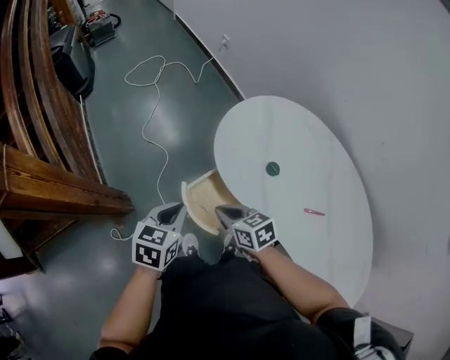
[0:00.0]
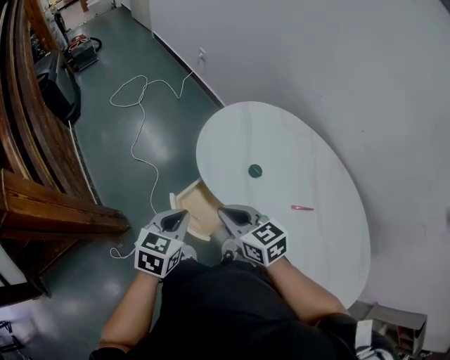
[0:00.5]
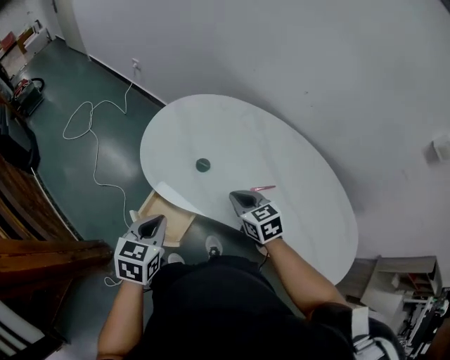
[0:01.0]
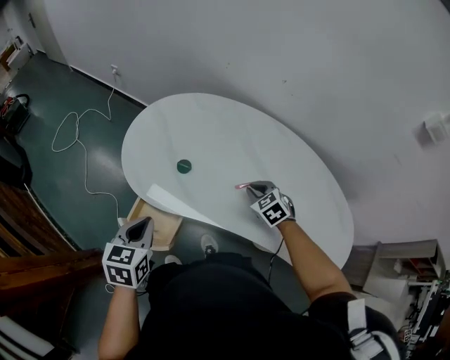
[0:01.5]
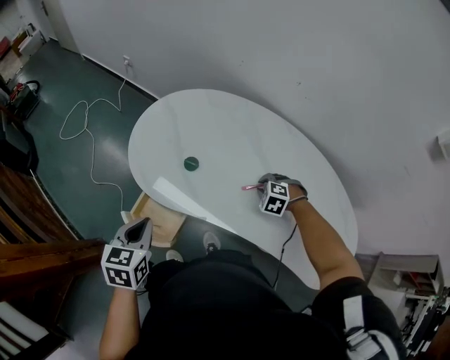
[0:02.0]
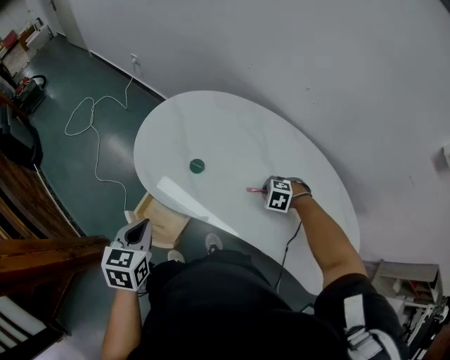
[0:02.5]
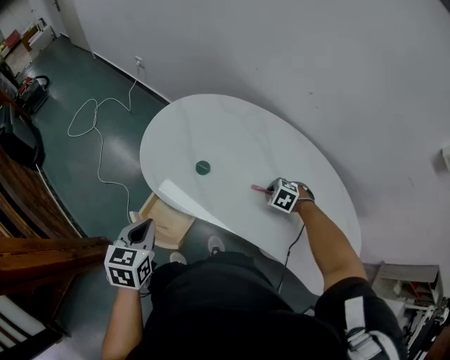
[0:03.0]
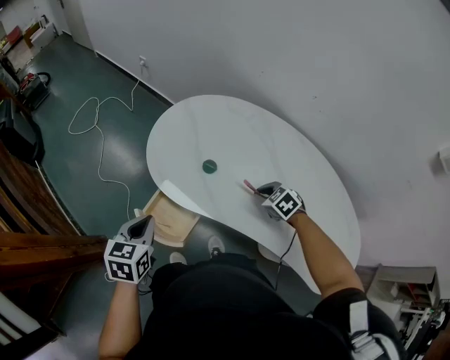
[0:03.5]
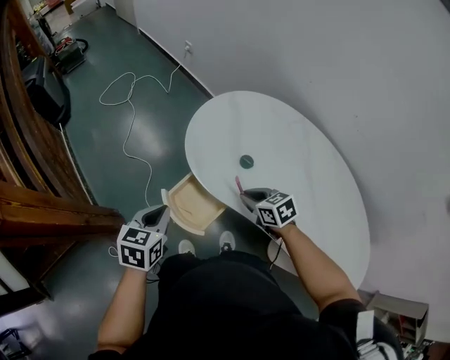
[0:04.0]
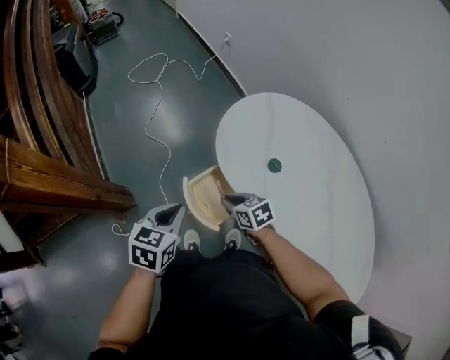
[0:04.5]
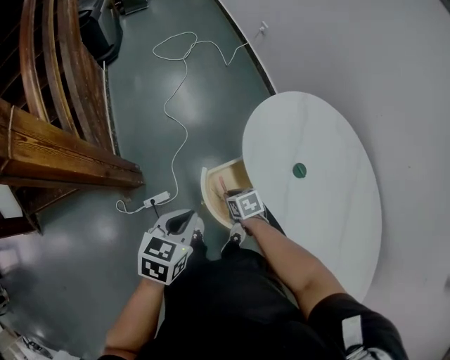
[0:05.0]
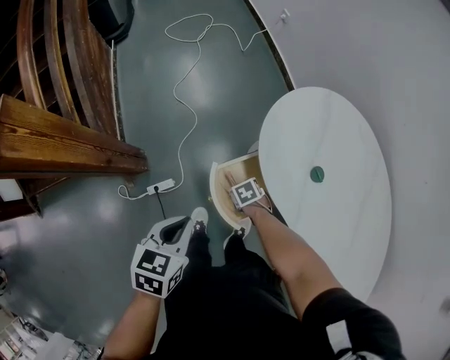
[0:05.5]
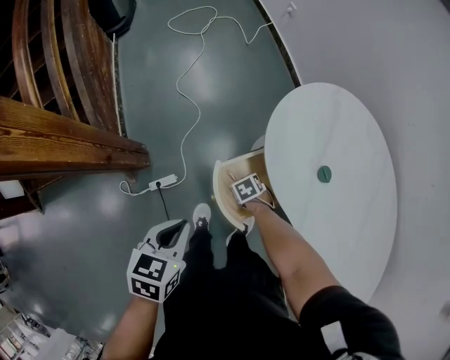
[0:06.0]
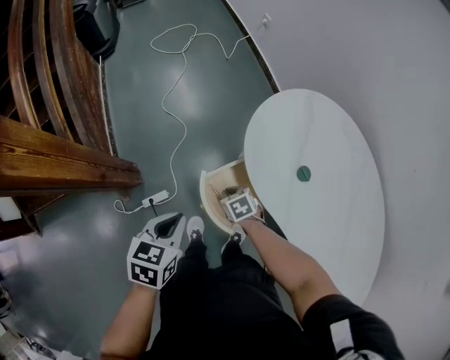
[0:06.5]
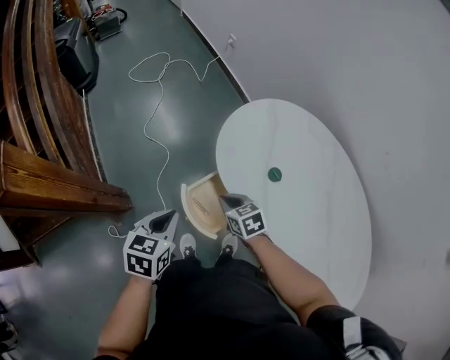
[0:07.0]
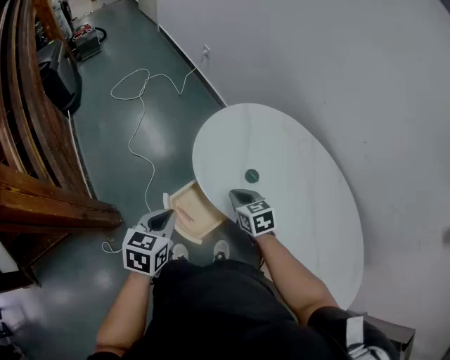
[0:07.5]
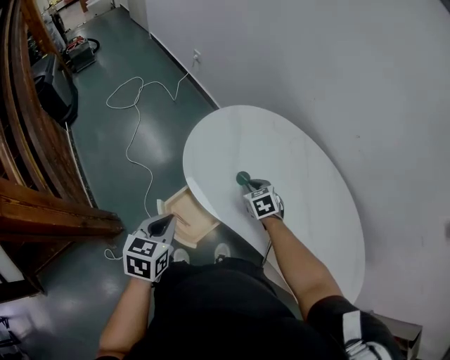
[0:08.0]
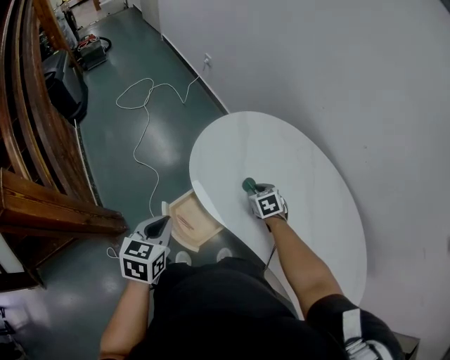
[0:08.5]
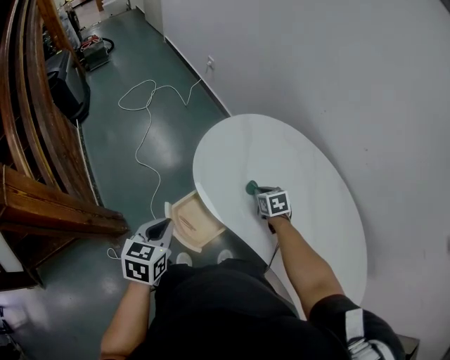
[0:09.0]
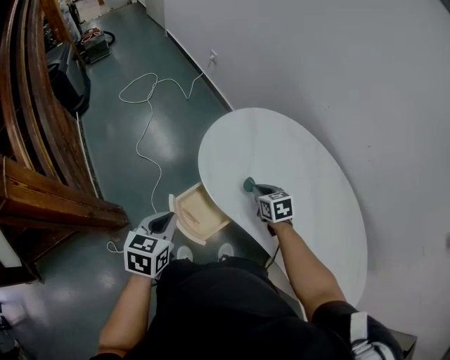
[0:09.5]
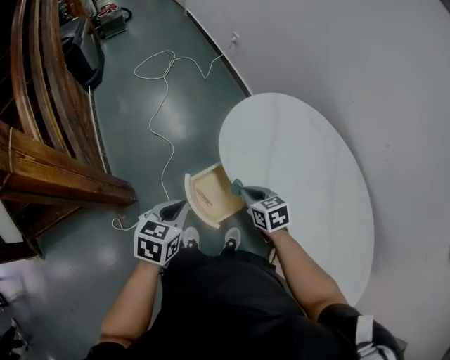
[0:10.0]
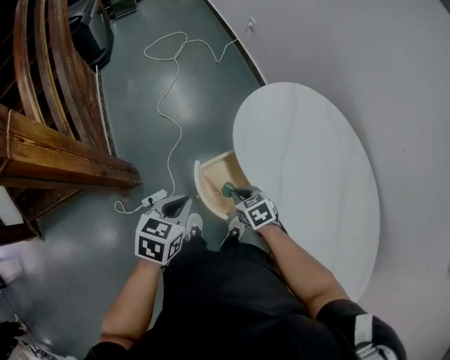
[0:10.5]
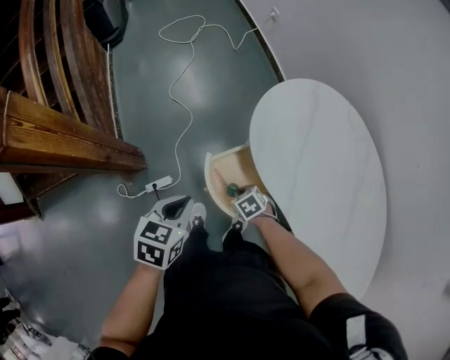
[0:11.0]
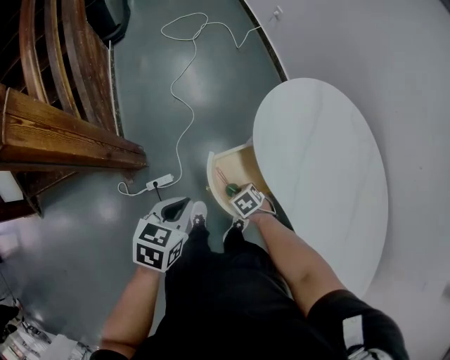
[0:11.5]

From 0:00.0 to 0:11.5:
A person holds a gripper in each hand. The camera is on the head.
From 0:00.0 to 0:02.0: The right gripper ends up approximately 40 cm from where it was, and points its fingers approximately 30 degrees further downward; the left gripper moves about 15 cm.
From 0:02.0 to 0:04.0: The right gripper changes place by roughly 25 cm, and turns by approximately 50 degrees. Meanwhile the left gripper shifts by roughly 10 cm.
From 0:04.0 to 0:06.0: The right gripper travels downward by roughly 30 cm, and angles its fingers downward, by approximately 40 degrees. Meanwhile the left gripper ends up roughly 10 cm from where it was, and swivels about 20 degrees.
From 0:06.0 to 0:07.5: The right gripper travels upward by about 30 cm, and angles its fingers upward, by about 40 degrees; the left gripper ends up some 15 cm from where it was.
From 0:07.5 to 0:09.5: The right gripper travels to the right by about 5 cm.
From 0:09.5 to 0:11.5: The left gripper moves roughly 10 cm, while the right gripper shifts by some 30 cm, and turns by approximately 40 degrees.

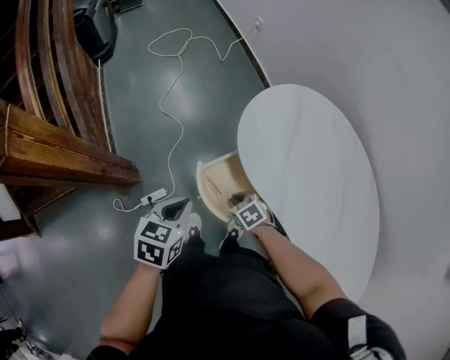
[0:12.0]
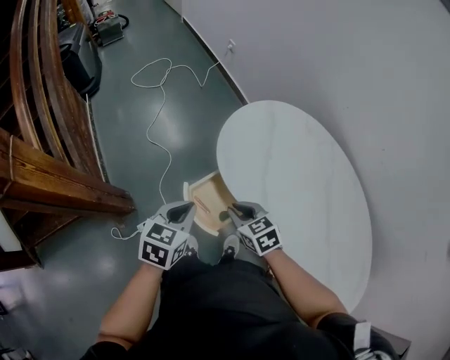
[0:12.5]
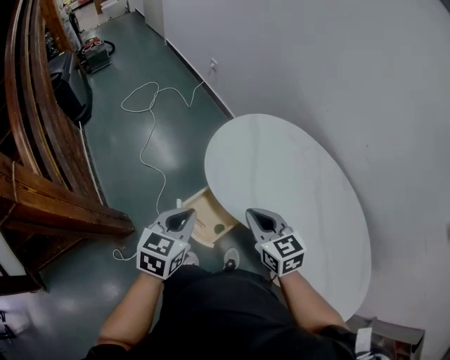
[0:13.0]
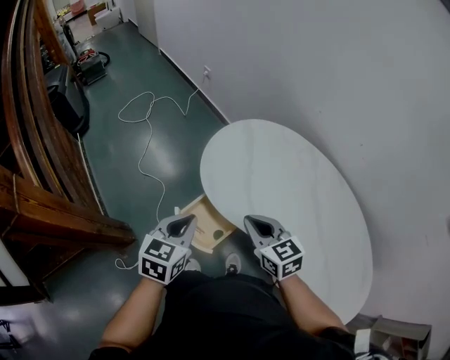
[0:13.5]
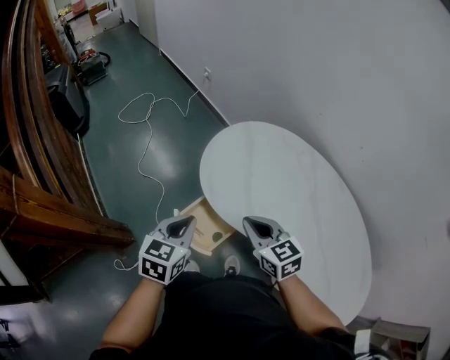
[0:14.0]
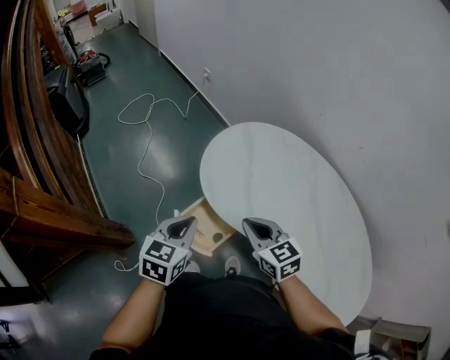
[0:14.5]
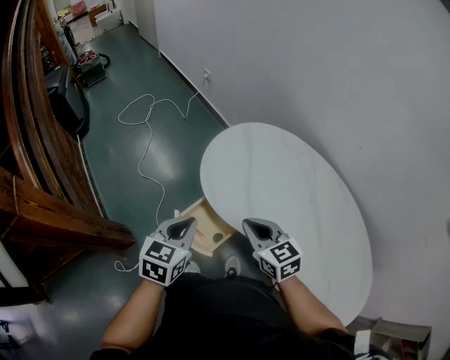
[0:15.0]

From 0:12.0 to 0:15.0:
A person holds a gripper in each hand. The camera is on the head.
From 0:12.0 to 0:13.5: The right gripper moves upward, roughly 30 cm, and tilts its fingers roughly 40 degrees upward, while the left gripper is displaced upward and to the right by roughly 15 cm, and rotates some 20 degrees.
From 0:13.5 to 0:15.0: Both grippers stay about where they are.

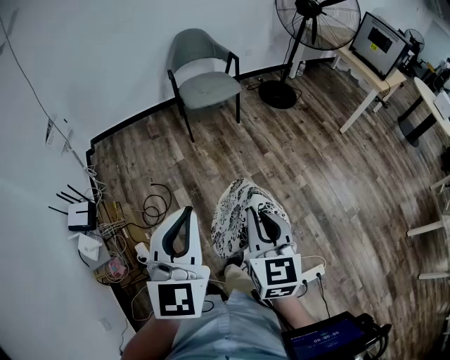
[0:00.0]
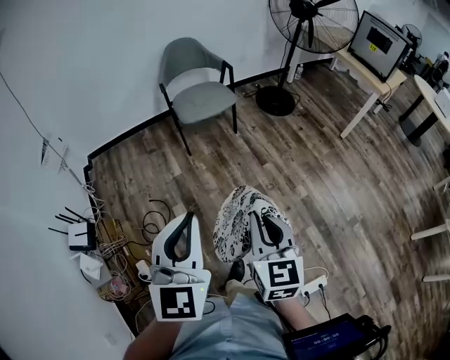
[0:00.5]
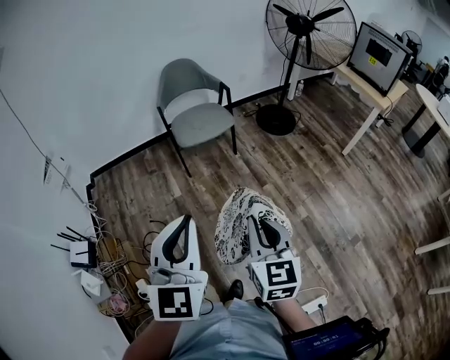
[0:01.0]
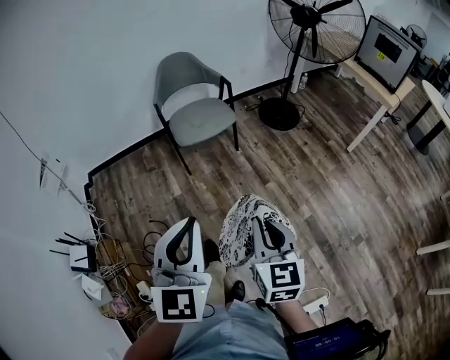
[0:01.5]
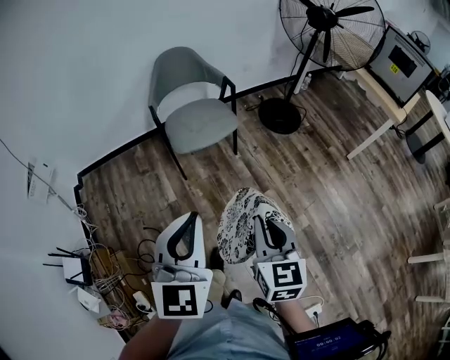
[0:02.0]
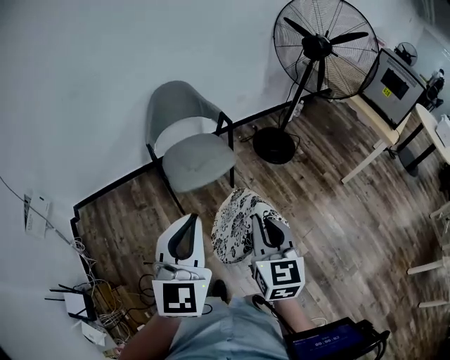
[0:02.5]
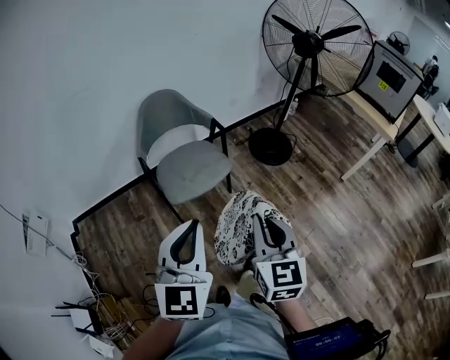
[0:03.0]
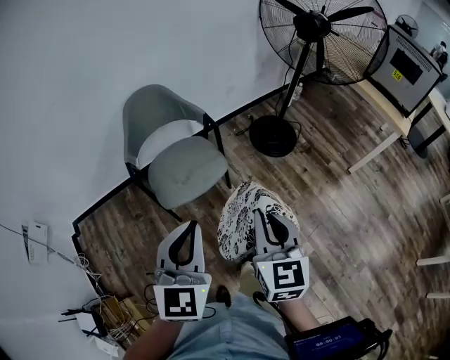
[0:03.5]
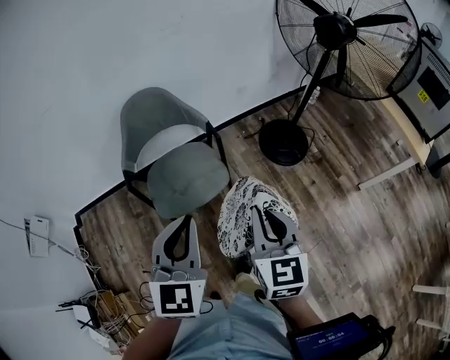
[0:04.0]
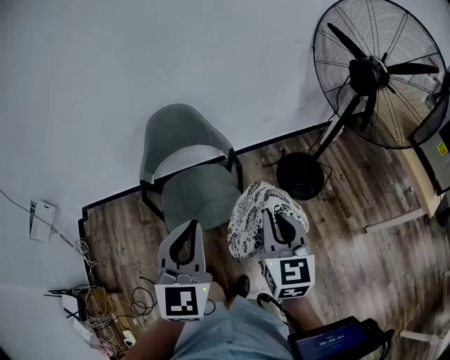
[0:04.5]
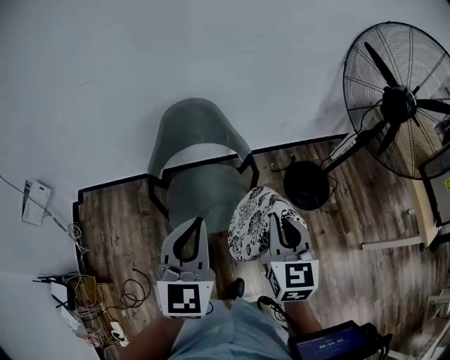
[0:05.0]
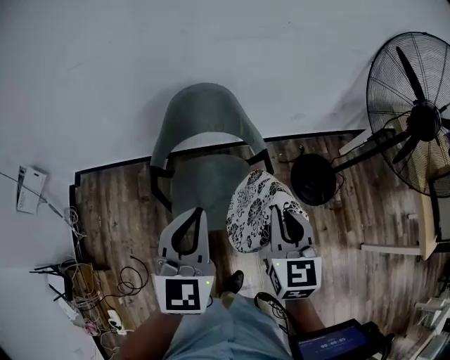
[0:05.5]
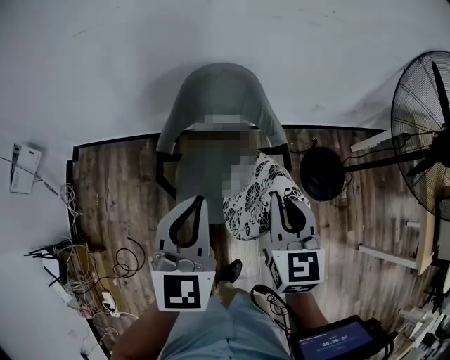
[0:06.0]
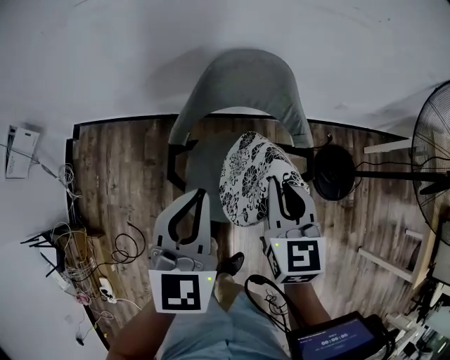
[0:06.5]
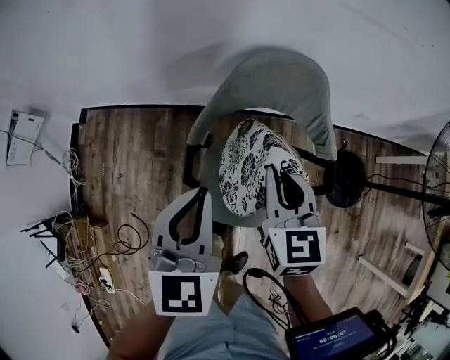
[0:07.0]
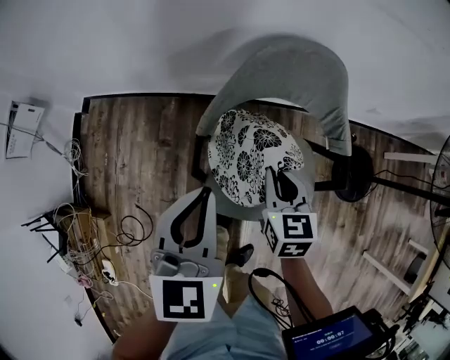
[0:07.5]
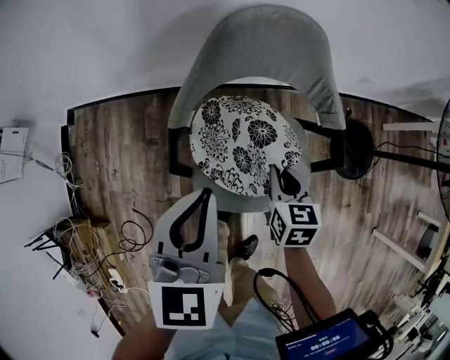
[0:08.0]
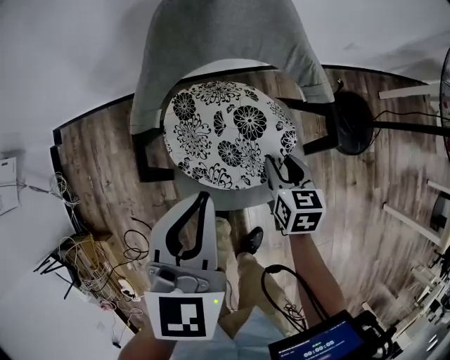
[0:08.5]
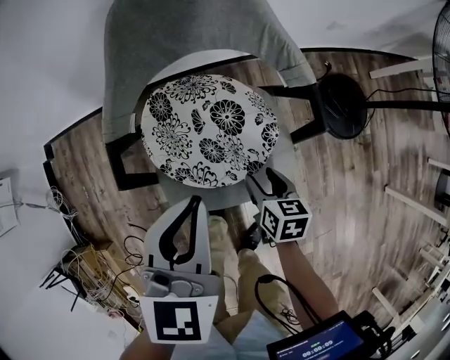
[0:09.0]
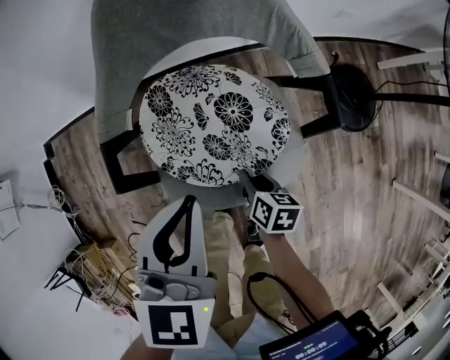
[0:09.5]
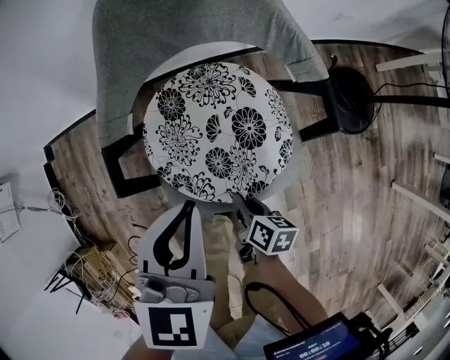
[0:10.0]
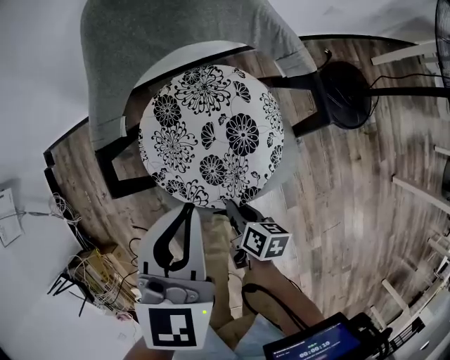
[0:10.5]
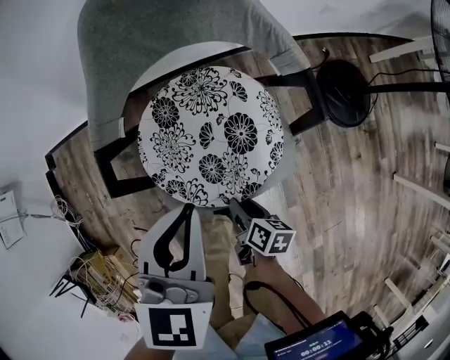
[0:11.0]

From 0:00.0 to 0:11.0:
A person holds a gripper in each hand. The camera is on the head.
From 0:00.0 to 0:02.0: Both grippers move forward, roughly 35 cm.
From 0:02.0 to 0:03.5: Both grippers travel together forward, roughly 25 cm.
From 0:03.5 to 0:05.5: Both grippers move forward, about 30 cm. The left gripper rotates about 20 degrees. The right gripper changes its angle by approximately 20 degrees.
From 0:05.5 to 0:07.5: The left gripper goes roughly 25 cm to the left, downward and forward; the right gripper goes about 35 cm downward, to the left and forward, and swivels approximately 20 degrees.
From 0:07.5 to 0:09.0: The left gripper travels to the right and downward by approximately 15 cm. Meanwhile the right gripper goes approximately 25 cm downward, to the right and backward, turns by approximately 30 degrees, and opens.
From 0:09.0 to 0:11.0: The right gripper shifts some 10 cm backward, downward and to the left, swivels roughly 30 degrees, and closes up.

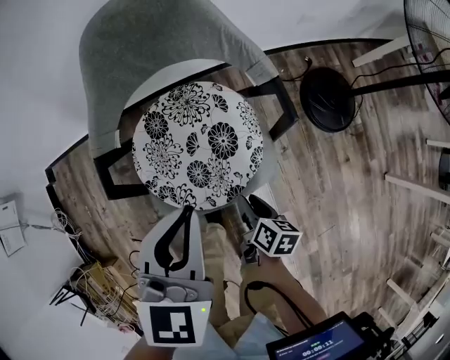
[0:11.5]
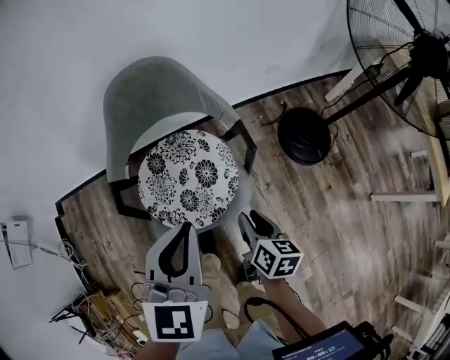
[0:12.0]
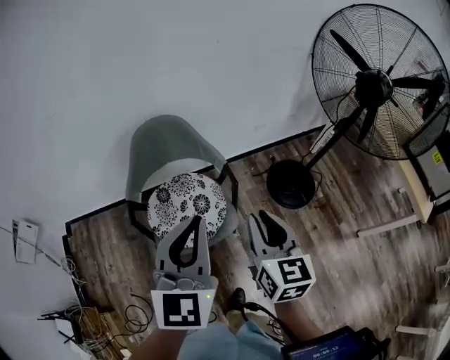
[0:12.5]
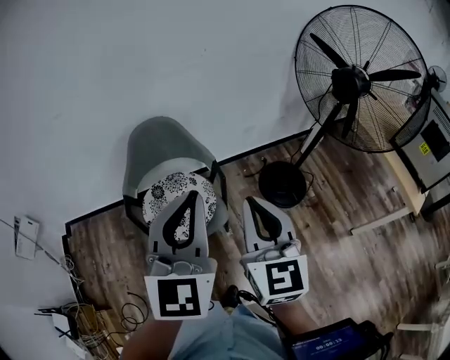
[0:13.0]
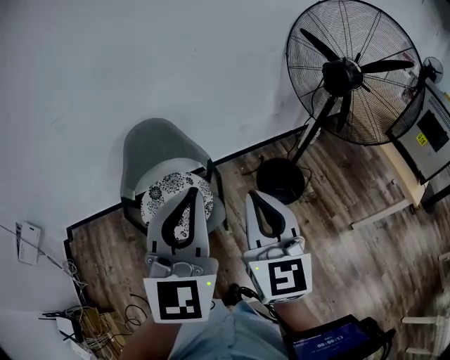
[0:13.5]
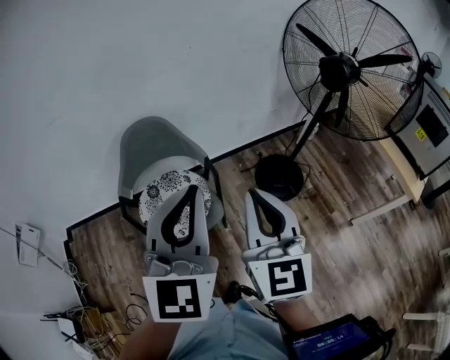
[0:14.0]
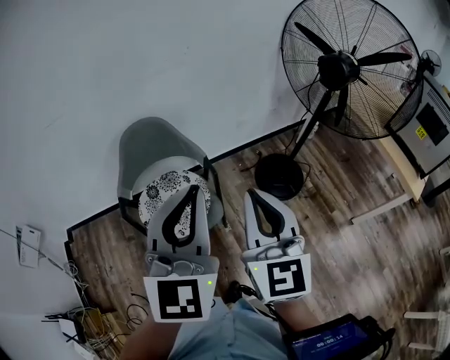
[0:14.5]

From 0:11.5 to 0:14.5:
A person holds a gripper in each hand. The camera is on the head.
From 0:11.5 to 0:13.0: The right gripper shifts some 60 cm upward, points its fingers about 40 degrees further upward, and closes, while the left gripper moves upward, backward and to the right, about 40 cm, and angles its fingers upward, by about 30 degrees.
From 0:13.0 to 0:14.5: The grippers stay close to where they were, moving slightly.
